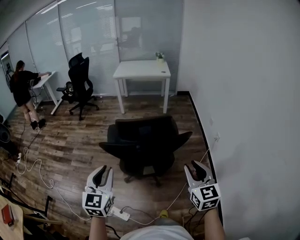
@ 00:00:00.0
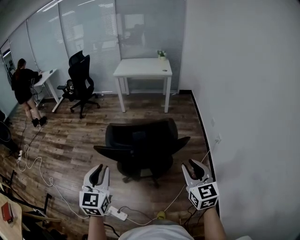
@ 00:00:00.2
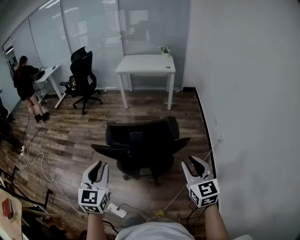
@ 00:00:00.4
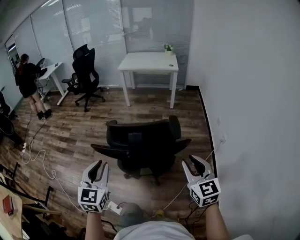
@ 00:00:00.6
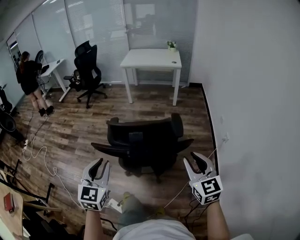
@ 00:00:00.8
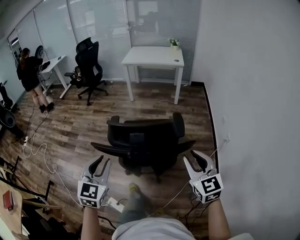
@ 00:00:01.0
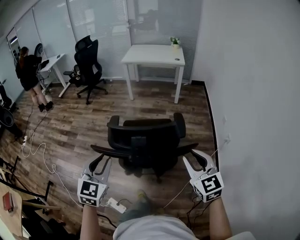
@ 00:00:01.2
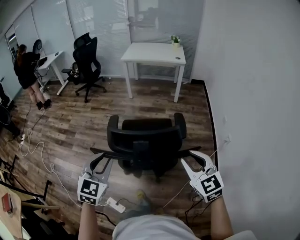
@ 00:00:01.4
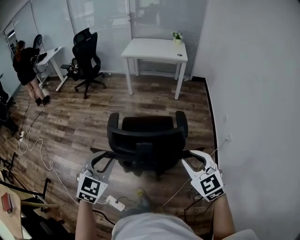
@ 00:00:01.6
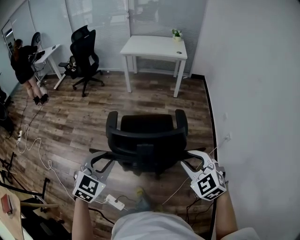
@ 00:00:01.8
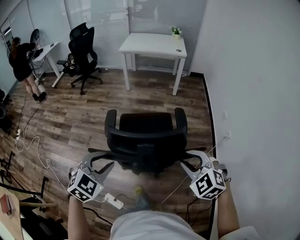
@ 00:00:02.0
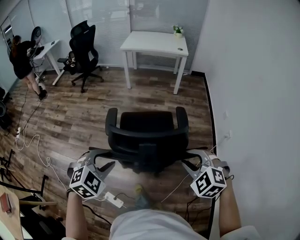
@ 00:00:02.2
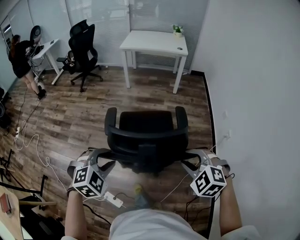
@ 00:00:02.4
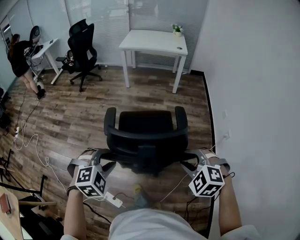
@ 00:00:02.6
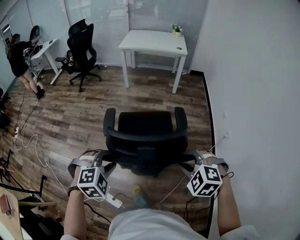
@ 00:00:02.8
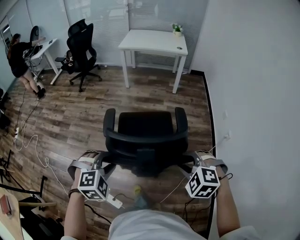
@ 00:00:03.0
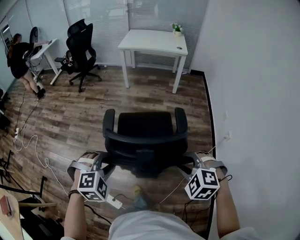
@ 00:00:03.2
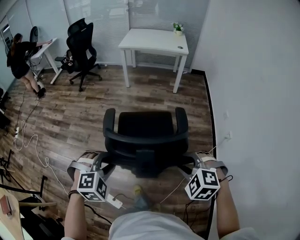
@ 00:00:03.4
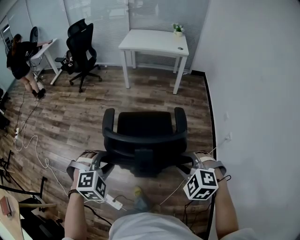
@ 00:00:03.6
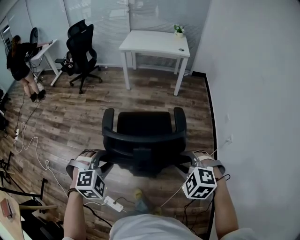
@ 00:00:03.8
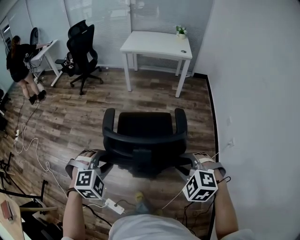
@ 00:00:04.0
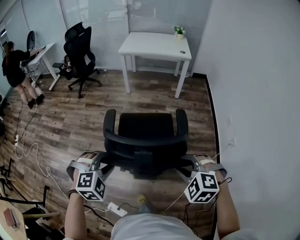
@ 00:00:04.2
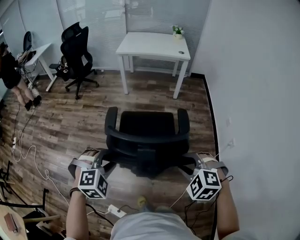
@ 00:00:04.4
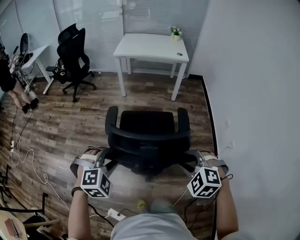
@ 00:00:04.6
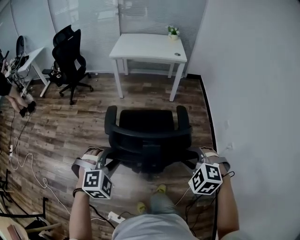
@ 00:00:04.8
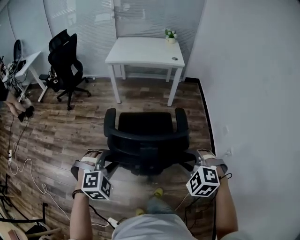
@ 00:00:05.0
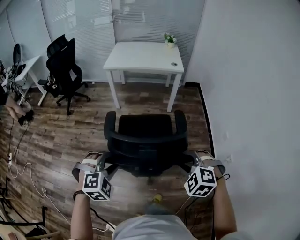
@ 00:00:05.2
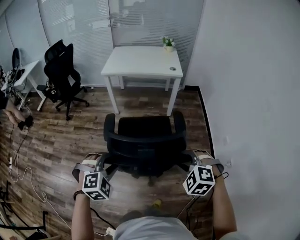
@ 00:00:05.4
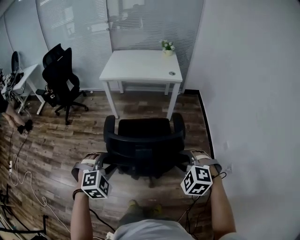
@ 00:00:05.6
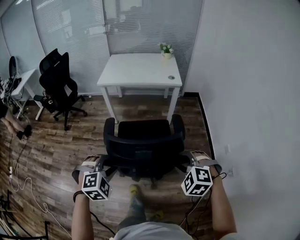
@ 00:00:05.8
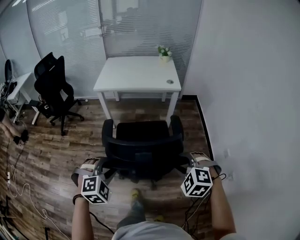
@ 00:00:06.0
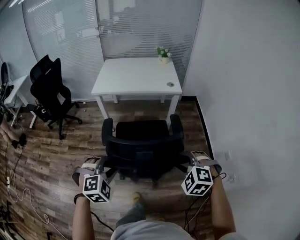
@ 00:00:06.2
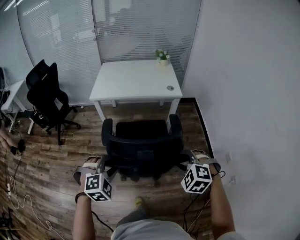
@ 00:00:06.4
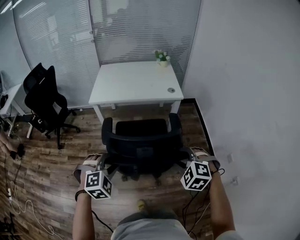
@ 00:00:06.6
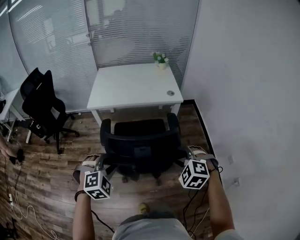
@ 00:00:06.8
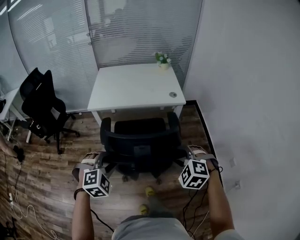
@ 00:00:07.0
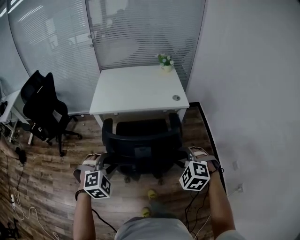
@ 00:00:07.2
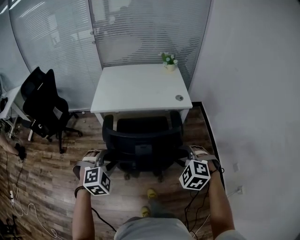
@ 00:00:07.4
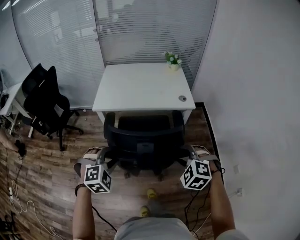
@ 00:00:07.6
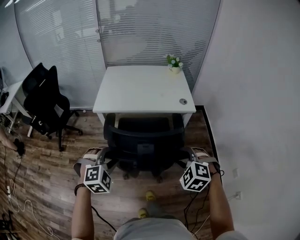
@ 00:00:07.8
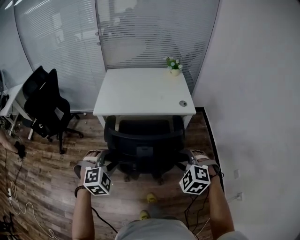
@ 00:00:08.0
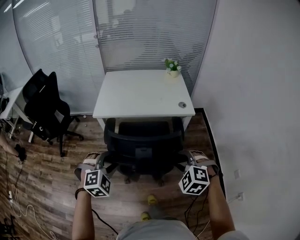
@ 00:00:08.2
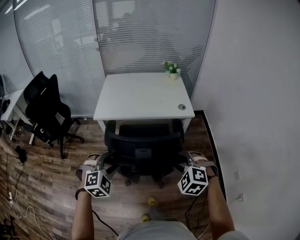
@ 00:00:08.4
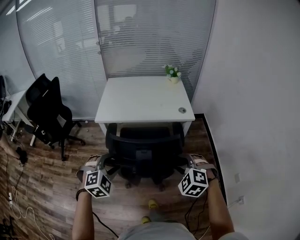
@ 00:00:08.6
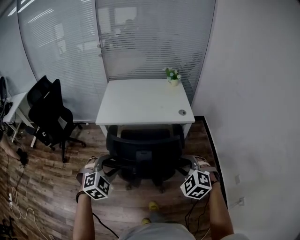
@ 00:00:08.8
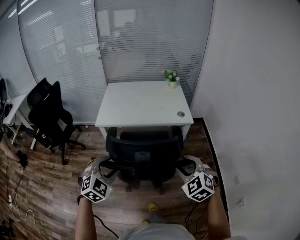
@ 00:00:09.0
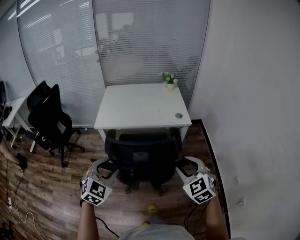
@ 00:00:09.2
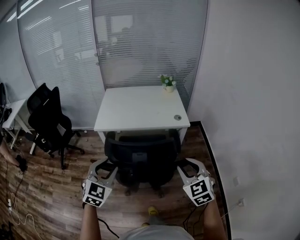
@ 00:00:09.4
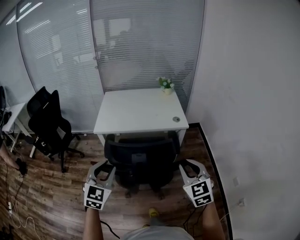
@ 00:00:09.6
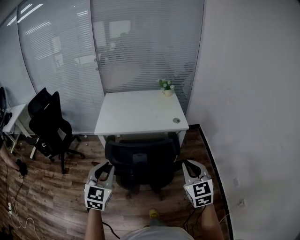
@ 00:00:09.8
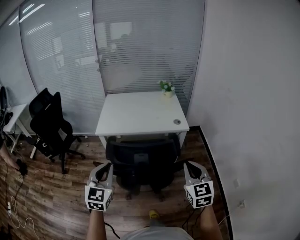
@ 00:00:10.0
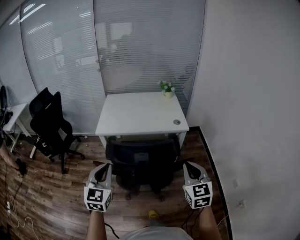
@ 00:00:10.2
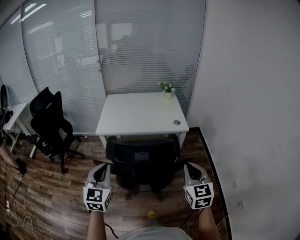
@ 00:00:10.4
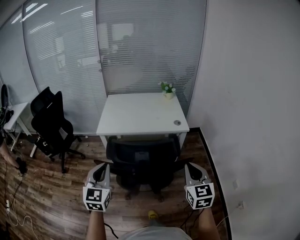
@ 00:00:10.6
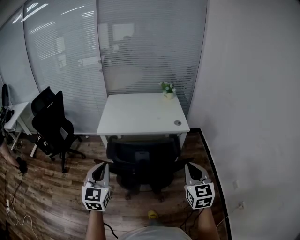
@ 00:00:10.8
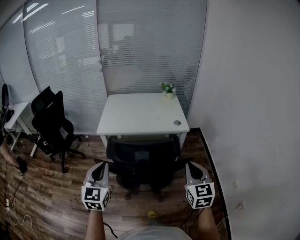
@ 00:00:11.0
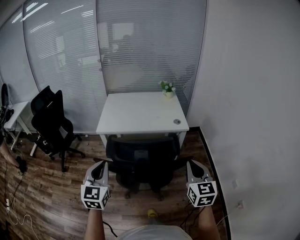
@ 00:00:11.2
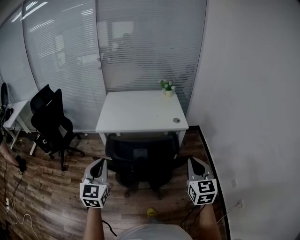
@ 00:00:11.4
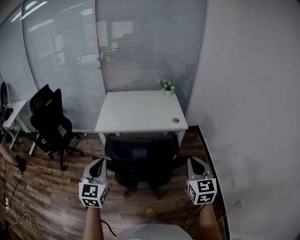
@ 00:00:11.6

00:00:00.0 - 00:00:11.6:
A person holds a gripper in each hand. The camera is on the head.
00:00:00.0 - 00:00:01.4: The grippers both shift forward by about 15 cm. The right gripper turns by approximately 30 degrees.
00:00:01.4 - 00:00:02.8: The grippers both shift downward by approximately 5 cm. The left gripper angles its fingers downward, by about 40 degrees. The right gripper points its fingers some 40 degrees further downward.
00:00:02.8 - 00:00:04.4: Both grippers travel together forward, roughly 15 cm.
00:00:04.4 - 00:00:05.8: The grippers both shift forward by roughly 40 cm.
00:00:05.8 - 00:00:07.2: Both grippers move forward, some 30 cm.
00:00:07.2 - 00:00:08.8: The right gripper ends up roughly 5 cm from where it was. The left gripper changes place by roughly 5 cm.
00:00:08.8 - 00:00:10.2: The two grippers go about 10 cm upward. The left gripper tilts its fingers approximately 30 degrees upward, and closes up. Meanwhile the right gripper tilts its fingers some 30 degrees upward, and closes.
00:00:10.2 - 00:00:11.6: The grippers make only small movements.

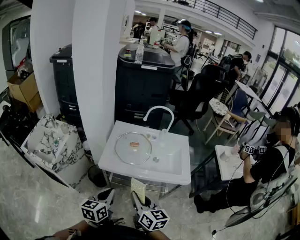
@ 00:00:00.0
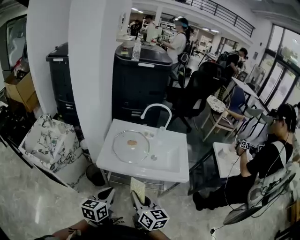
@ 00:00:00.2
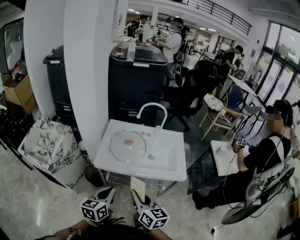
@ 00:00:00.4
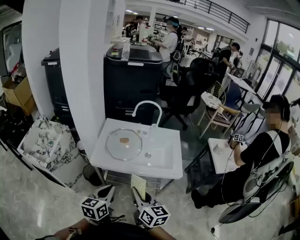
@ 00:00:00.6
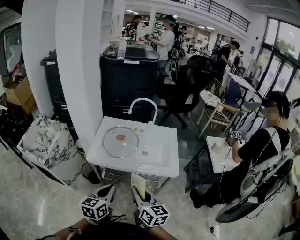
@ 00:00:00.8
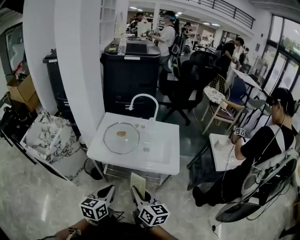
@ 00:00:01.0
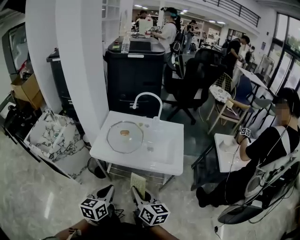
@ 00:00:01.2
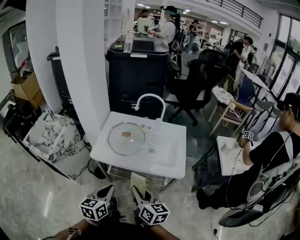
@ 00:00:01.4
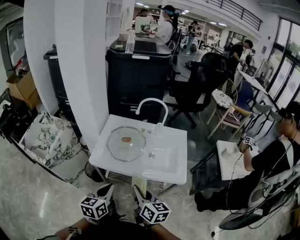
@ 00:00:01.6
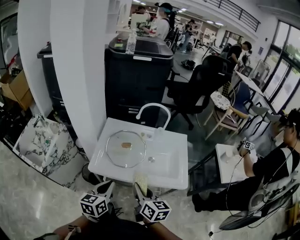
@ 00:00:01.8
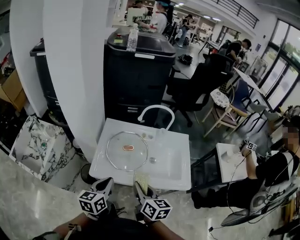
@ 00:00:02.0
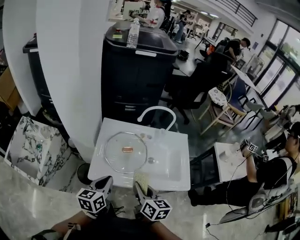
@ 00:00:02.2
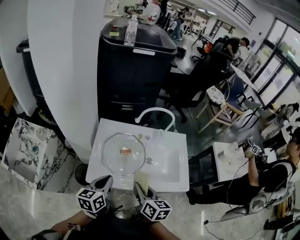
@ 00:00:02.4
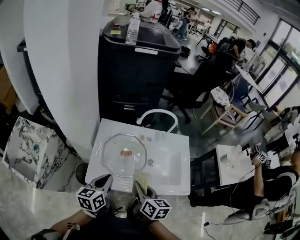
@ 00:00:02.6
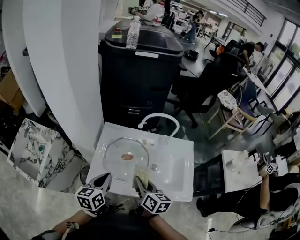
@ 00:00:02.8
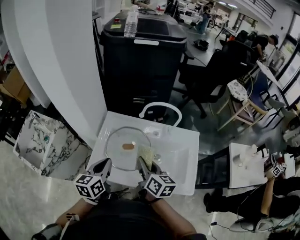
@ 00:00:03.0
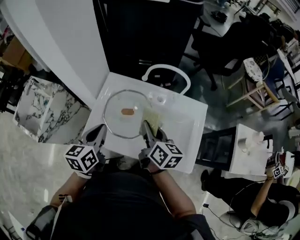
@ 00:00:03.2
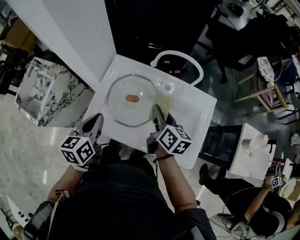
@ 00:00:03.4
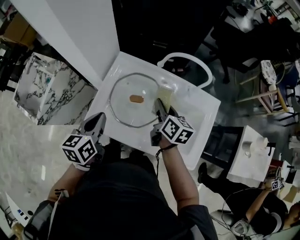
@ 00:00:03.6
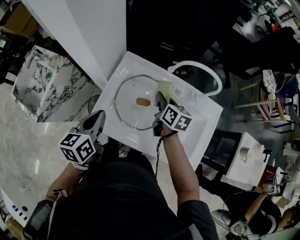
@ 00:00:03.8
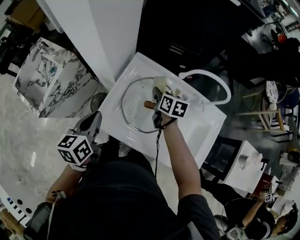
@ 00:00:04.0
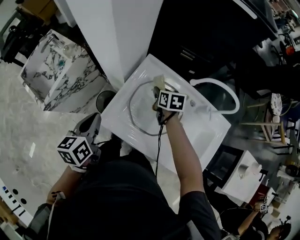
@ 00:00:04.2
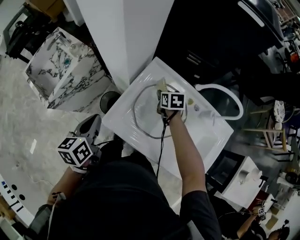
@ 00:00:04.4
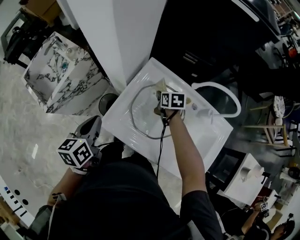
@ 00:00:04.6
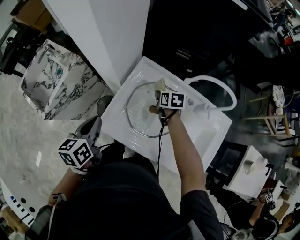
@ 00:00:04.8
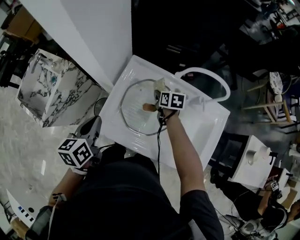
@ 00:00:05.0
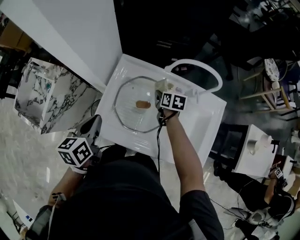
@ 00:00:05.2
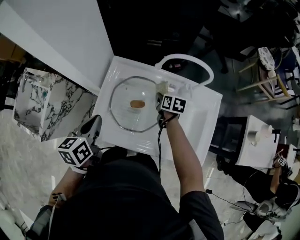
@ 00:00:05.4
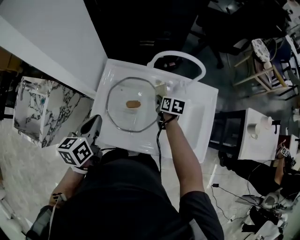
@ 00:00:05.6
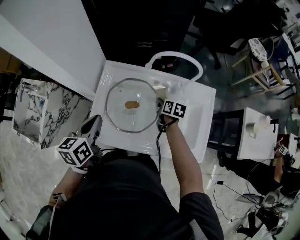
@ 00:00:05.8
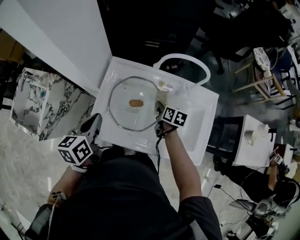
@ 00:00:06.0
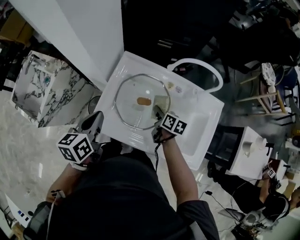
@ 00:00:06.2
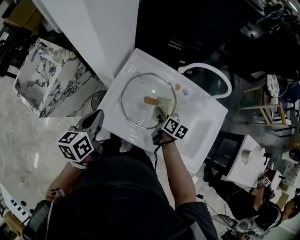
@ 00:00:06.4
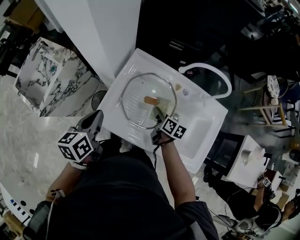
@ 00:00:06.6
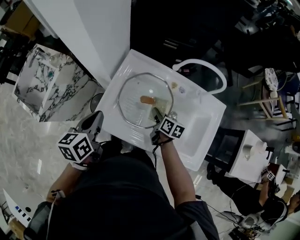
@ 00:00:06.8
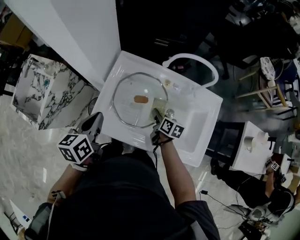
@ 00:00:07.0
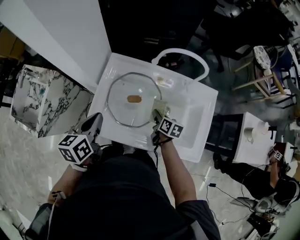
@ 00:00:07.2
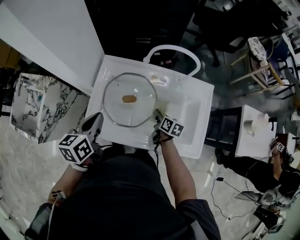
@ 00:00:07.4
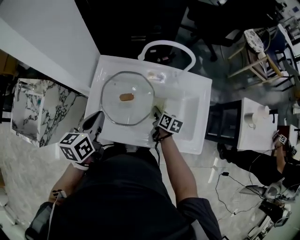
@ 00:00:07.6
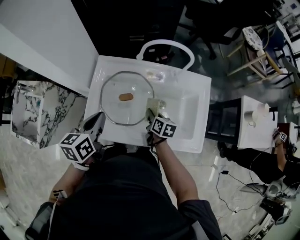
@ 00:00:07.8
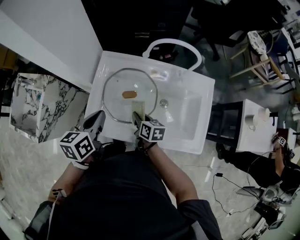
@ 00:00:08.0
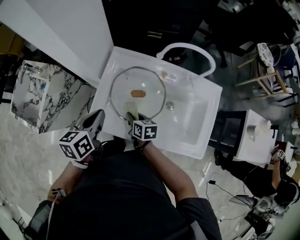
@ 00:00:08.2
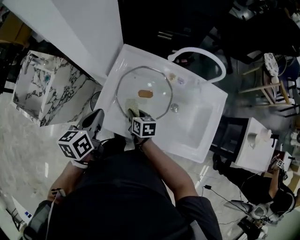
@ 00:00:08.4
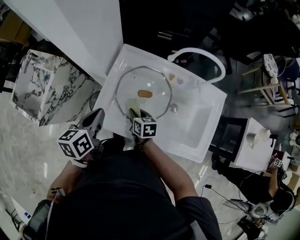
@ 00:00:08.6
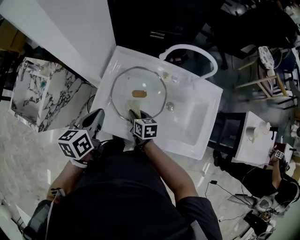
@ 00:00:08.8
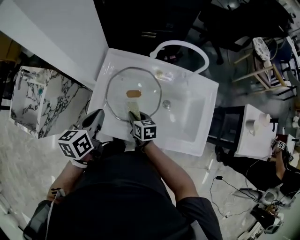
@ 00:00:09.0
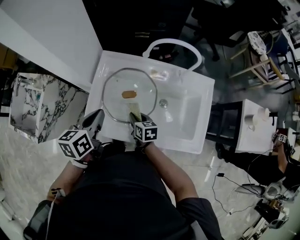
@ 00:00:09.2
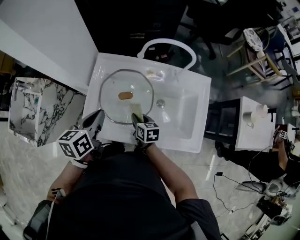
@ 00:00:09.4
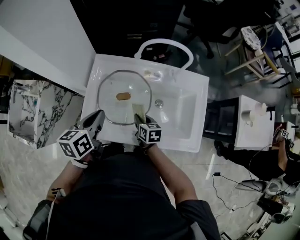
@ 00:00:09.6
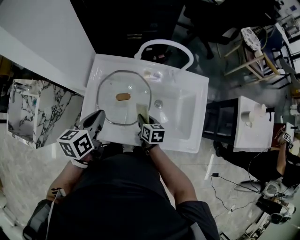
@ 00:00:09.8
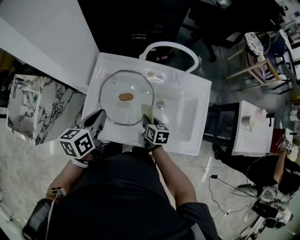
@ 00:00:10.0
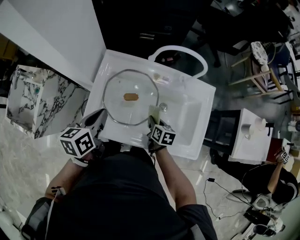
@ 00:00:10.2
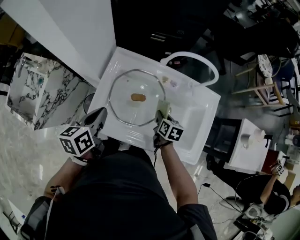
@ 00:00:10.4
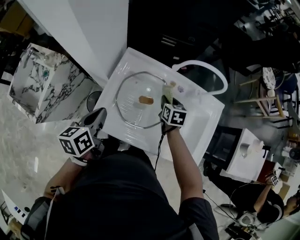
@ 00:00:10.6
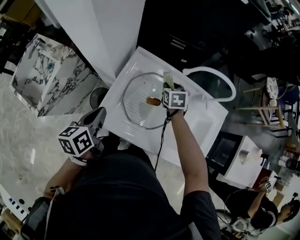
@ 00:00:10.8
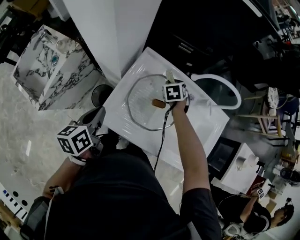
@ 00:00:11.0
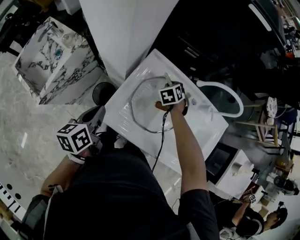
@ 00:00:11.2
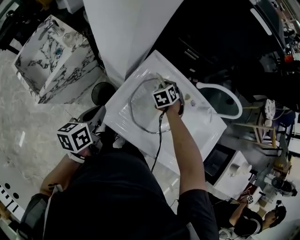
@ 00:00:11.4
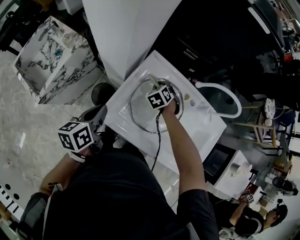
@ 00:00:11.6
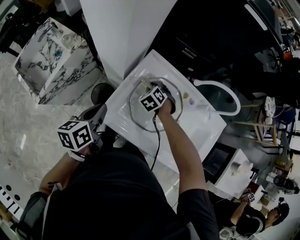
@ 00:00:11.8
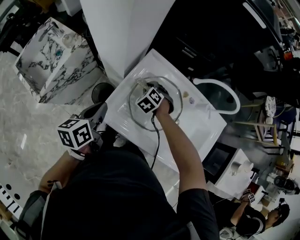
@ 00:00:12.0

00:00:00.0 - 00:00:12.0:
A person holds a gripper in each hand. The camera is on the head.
00:00:00.0 - 00:00:01.6: The left gripper travels to the right by roughly 10 cm. The right gripper travels to the right and forward by approximately 10 cm.
00:00:01.6 - 00:00:03.0: Both grippers move forward, about 25 cm.
00:00:03.0 - 00:00:04.4: The left gripper changes place by about 20 cm, and swivels about 30 degrees, while the right gripper moves about 35 cm, and angles its fingers downward, by about 40 degrees.
00:00:04.4 - 00:00:06.0: The right gripper is displaced to the right and backward by approximately 20 cm, and swivels approximately 40 degrees. The left gripper moves to the right, approximately 15 cm, and changes its angle by about 20 degrees.
00:00:06.0 - 00:00:07.6: The right gripper travels backward by approximately 5 cm, and goes to the left and returns, approximately 10 cm each way.
00:00:07.6 - 00:00:09.0: The right gripper goes about 15 cm to the left, and rotates approximately 30 degrees.
00:00:09.0 - 00:00:10.4: The right gripper heads to the right, covering about 15 cm.
00:00:10.4 - 00:00:12.0: The right gripper goes roughly 25 cm to the left and forward, and twists approximately 80 degrees counterclockwise, seen from behind; the left gripper moves to the left, some 10 cm.
